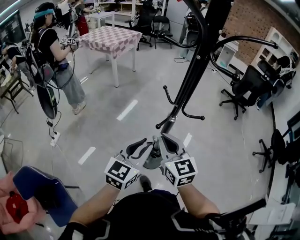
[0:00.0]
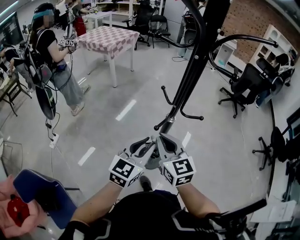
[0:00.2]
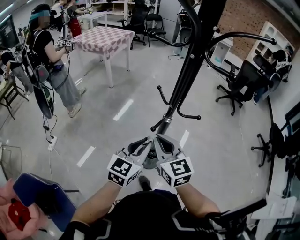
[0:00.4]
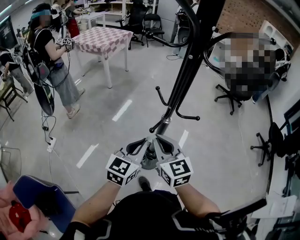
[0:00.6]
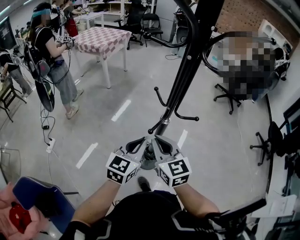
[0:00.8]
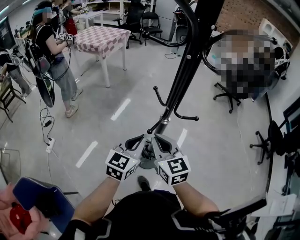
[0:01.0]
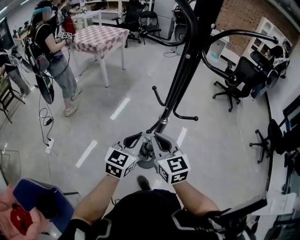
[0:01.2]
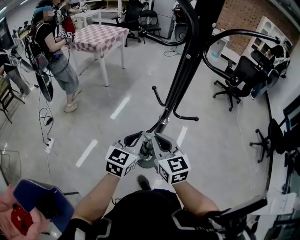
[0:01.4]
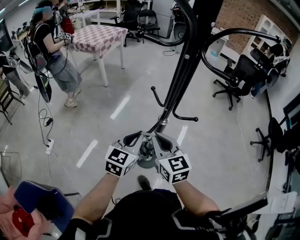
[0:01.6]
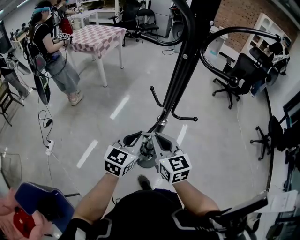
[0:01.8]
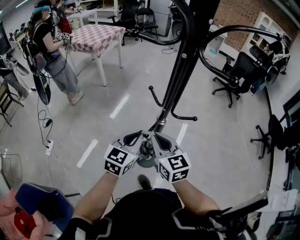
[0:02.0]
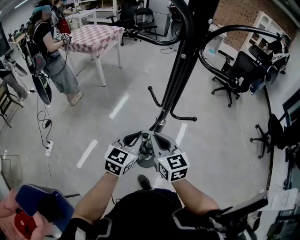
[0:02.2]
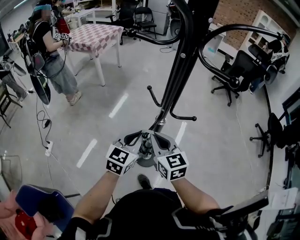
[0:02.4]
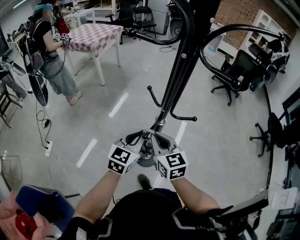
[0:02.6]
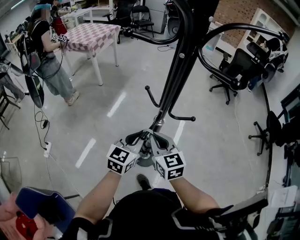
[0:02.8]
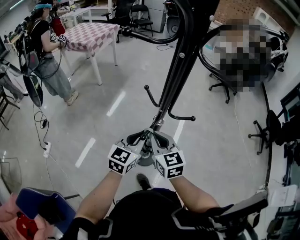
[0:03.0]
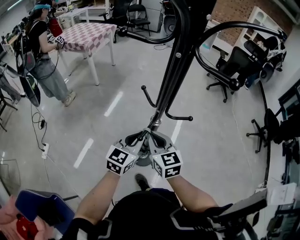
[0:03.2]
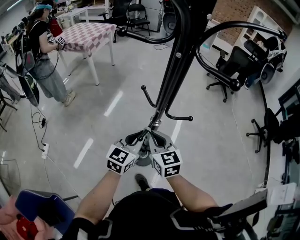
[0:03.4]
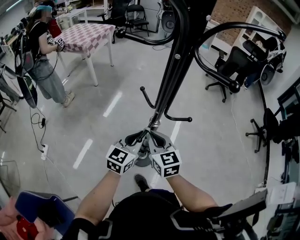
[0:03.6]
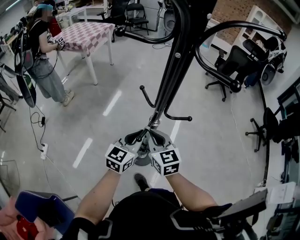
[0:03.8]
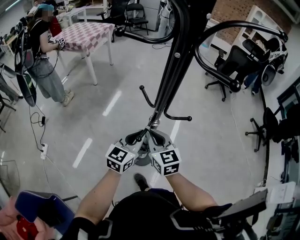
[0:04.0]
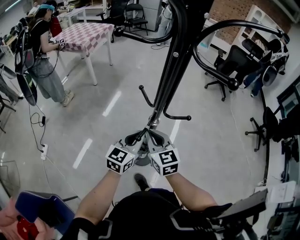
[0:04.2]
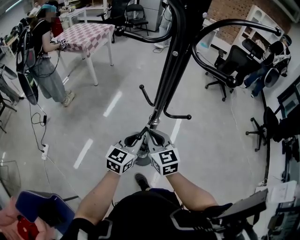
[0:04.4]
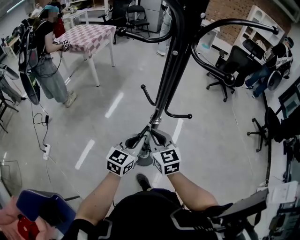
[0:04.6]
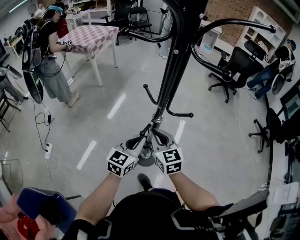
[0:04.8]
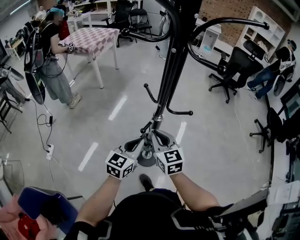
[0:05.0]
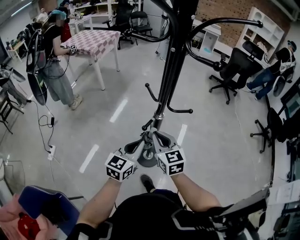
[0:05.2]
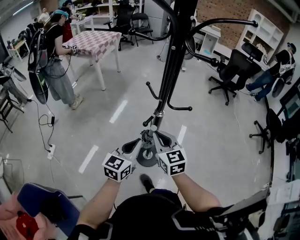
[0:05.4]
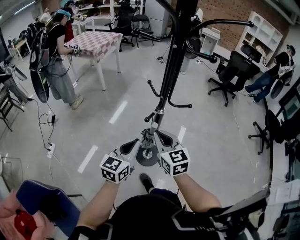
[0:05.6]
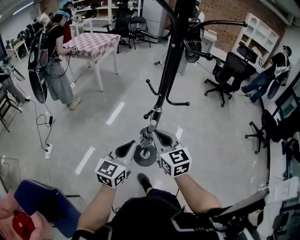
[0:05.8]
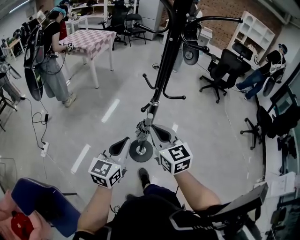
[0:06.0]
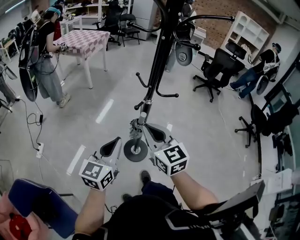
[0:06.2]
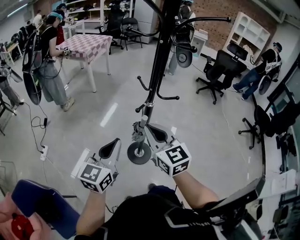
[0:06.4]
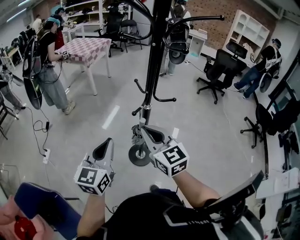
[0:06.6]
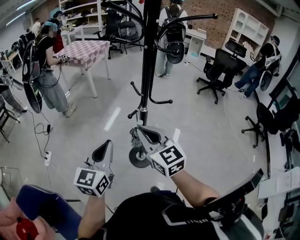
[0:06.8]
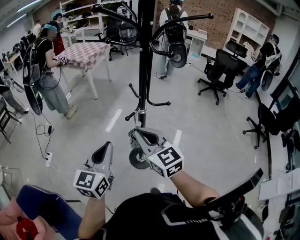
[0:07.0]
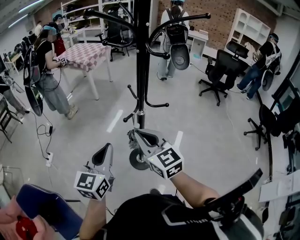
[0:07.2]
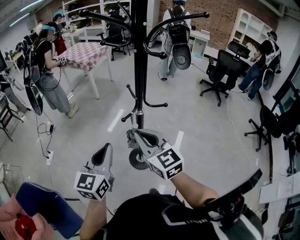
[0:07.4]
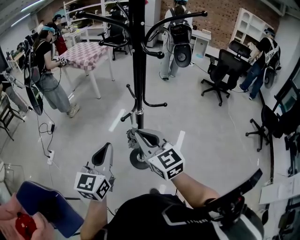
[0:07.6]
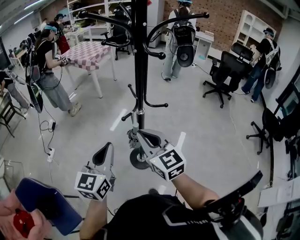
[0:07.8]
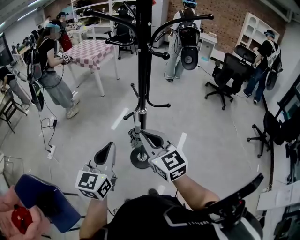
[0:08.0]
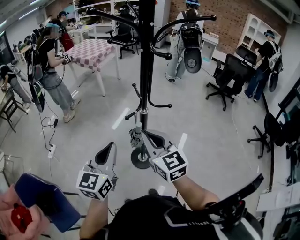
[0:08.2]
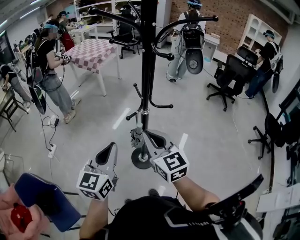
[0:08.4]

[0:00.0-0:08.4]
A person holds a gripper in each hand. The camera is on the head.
0:00.0 to 0:01.4: The left gripper shifts about 10 cm forward; the right gripper moves approximately 5 cm.
0:01.4 to 0:02.8: The left gripper moves about 5 cm. Meanwhile the right gripper ends up about 5 cm from where it was.
0:02.8 to 0:04.2: There are only small adjustments of the grippers.
0:04.2 to 0:05.6: The two grippers go about 10 cm backward.
0:05.6 to 0:07.0: The grippers both shift upward and backward by about 10 cm.
0:07.0 to 0:08.4: The grippers stay close to where they were, moving slightly.

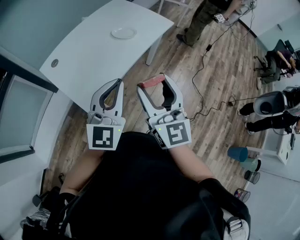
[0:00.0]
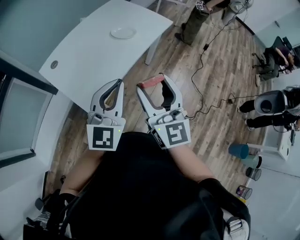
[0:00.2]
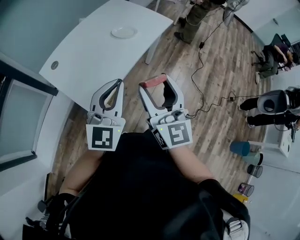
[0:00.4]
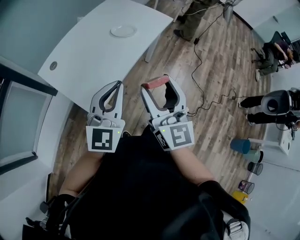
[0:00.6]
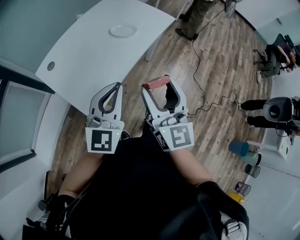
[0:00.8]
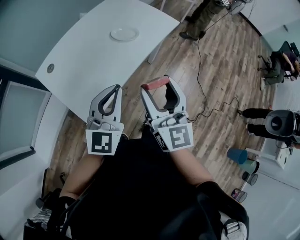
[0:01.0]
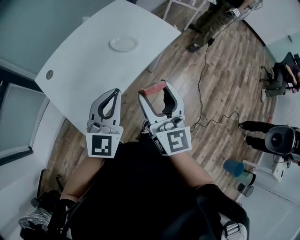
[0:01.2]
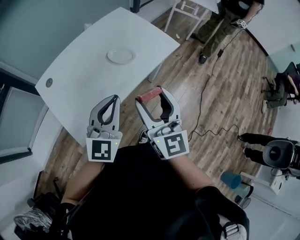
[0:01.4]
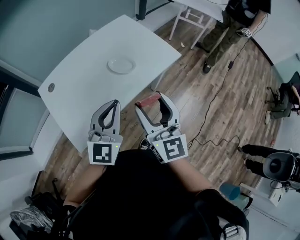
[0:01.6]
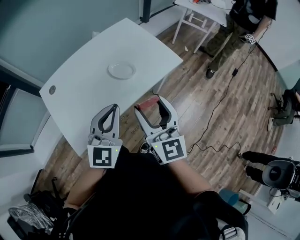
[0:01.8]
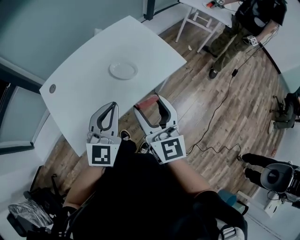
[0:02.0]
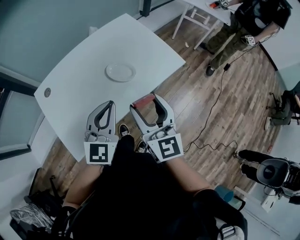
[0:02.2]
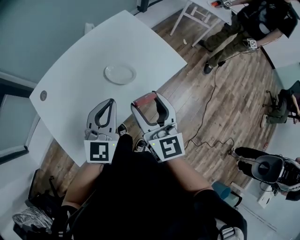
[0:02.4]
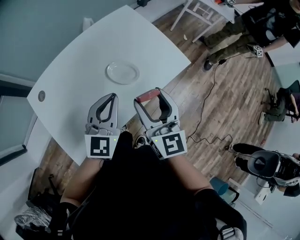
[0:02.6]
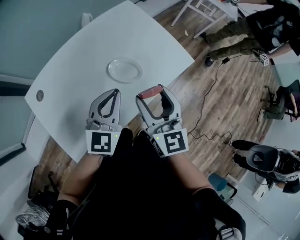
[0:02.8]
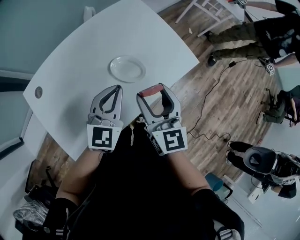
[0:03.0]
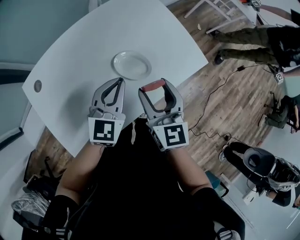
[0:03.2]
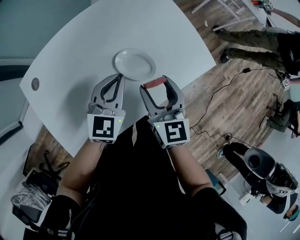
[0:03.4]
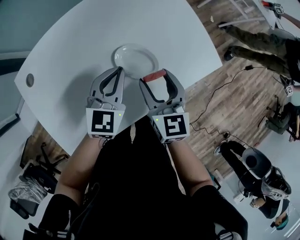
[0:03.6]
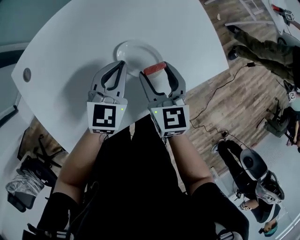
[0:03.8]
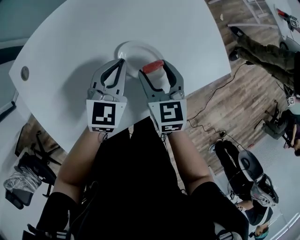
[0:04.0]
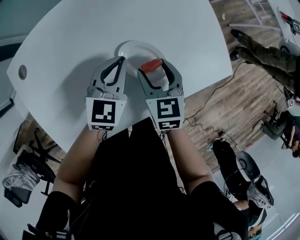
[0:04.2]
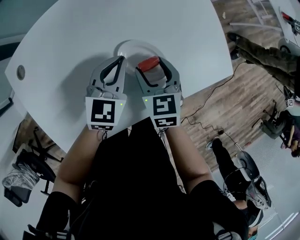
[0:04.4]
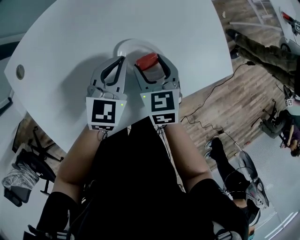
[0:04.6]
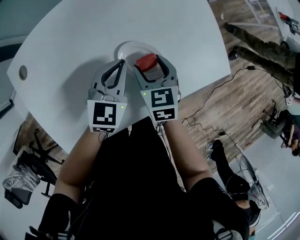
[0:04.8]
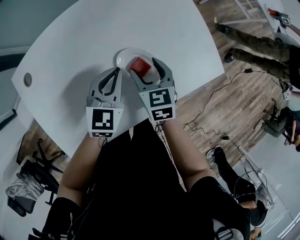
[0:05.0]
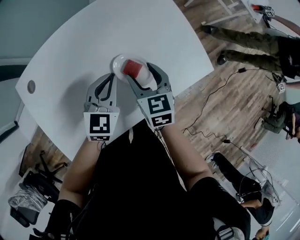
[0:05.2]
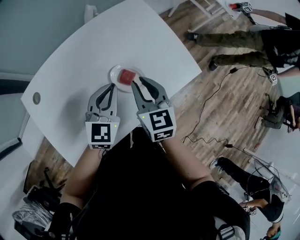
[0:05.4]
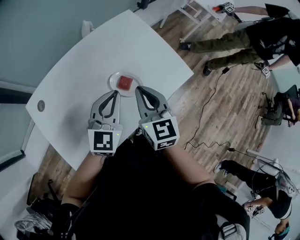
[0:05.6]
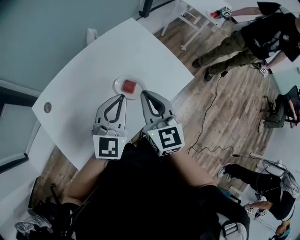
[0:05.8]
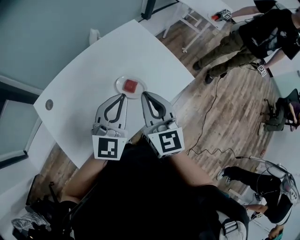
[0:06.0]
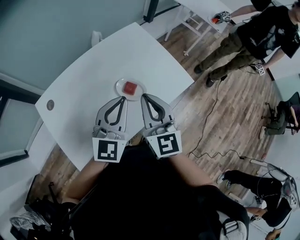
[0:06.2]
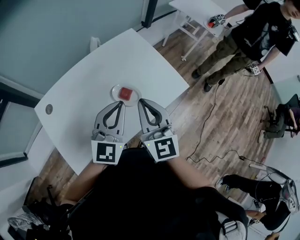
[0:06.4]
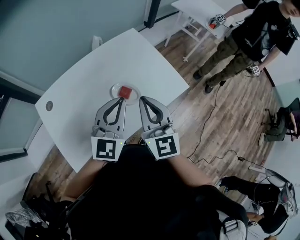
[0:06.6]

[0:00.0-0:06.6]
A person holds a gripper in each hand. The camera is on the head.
0:00.0 to 0:01.6: Both grippers move forward, some 20 cm.
0:01.6 to 0:03.2: Both grippers travel together forward and downward, some 25 cm.
0:03.2 to 0:05.0: The left gripper is displaced downward and forward by about 10 cm. The right gripper shifts approximately 20 cm downward and forward, and rotates some 30 degrees.
0:05.0 to 0:06.6: The grippers both shift upward and backward by approximately 25 cm. The right gripper tilts its fingers roughly 40 degrees upward, and closes its fingers. Meanwhile the left gripper rotates some 30 degrees.

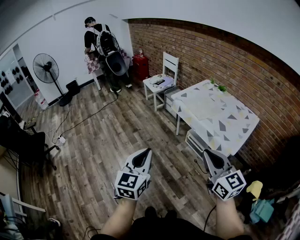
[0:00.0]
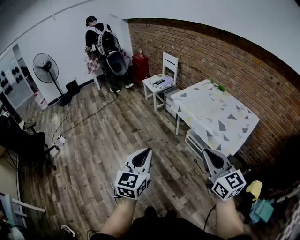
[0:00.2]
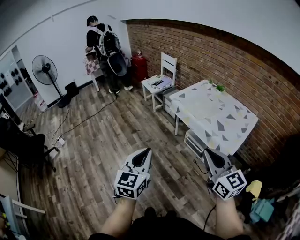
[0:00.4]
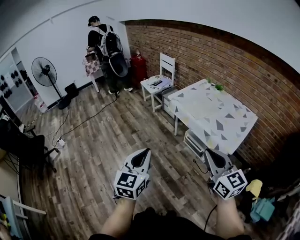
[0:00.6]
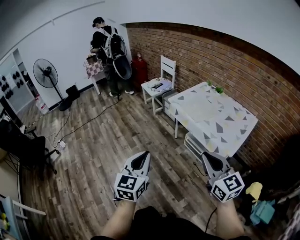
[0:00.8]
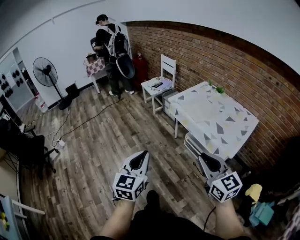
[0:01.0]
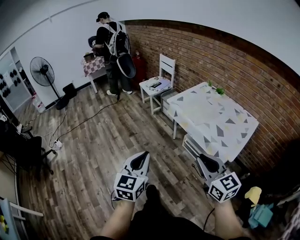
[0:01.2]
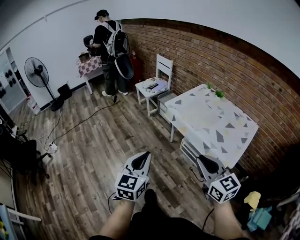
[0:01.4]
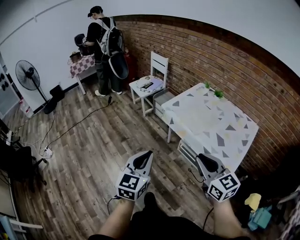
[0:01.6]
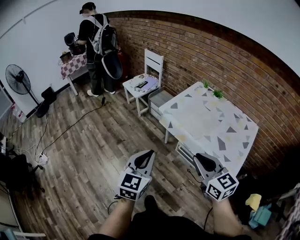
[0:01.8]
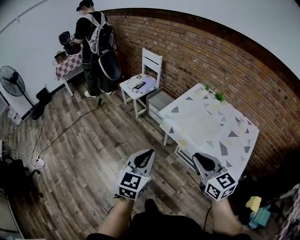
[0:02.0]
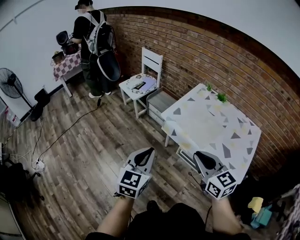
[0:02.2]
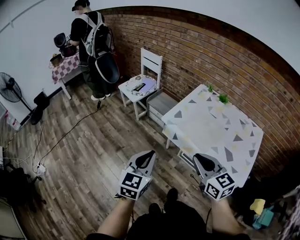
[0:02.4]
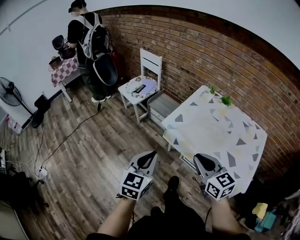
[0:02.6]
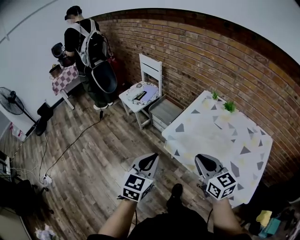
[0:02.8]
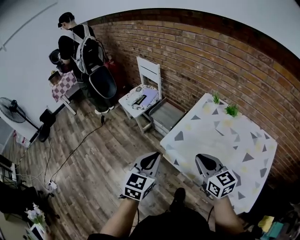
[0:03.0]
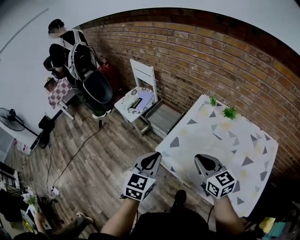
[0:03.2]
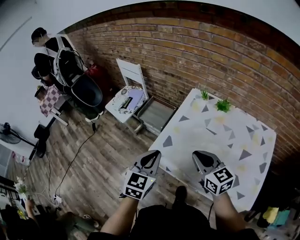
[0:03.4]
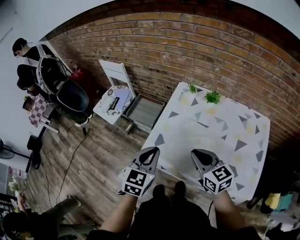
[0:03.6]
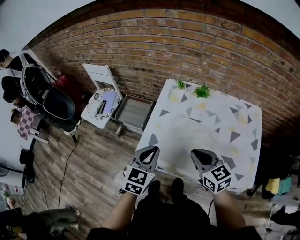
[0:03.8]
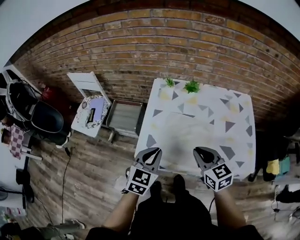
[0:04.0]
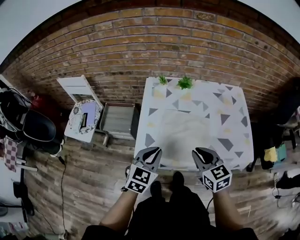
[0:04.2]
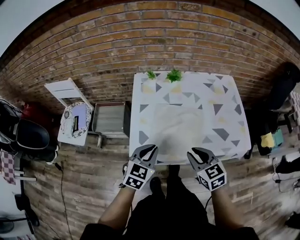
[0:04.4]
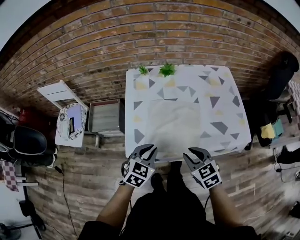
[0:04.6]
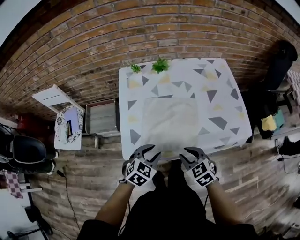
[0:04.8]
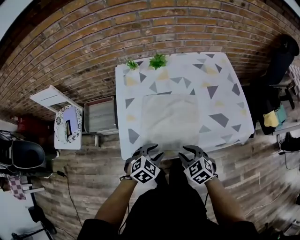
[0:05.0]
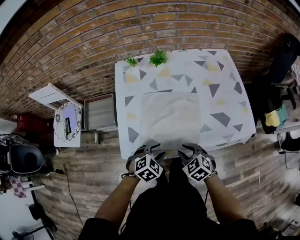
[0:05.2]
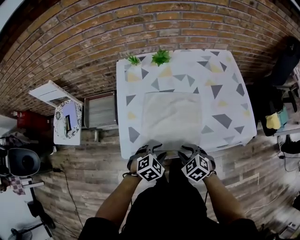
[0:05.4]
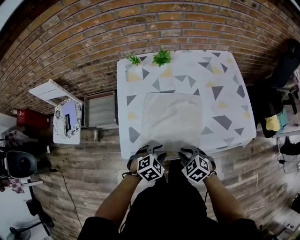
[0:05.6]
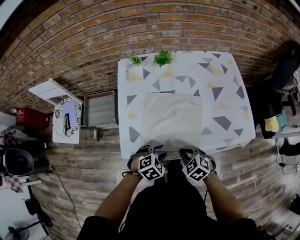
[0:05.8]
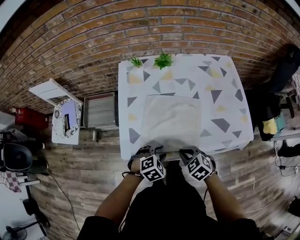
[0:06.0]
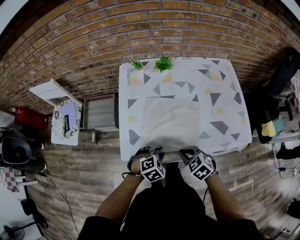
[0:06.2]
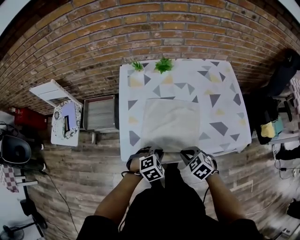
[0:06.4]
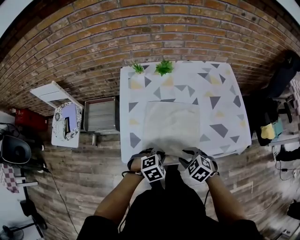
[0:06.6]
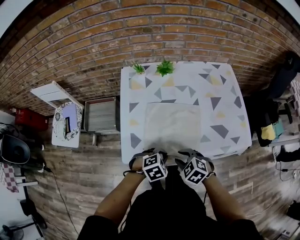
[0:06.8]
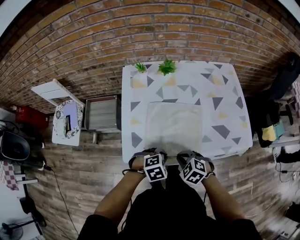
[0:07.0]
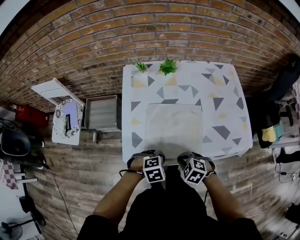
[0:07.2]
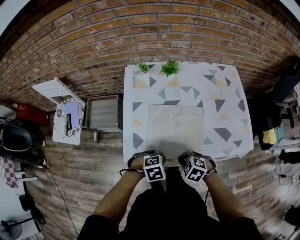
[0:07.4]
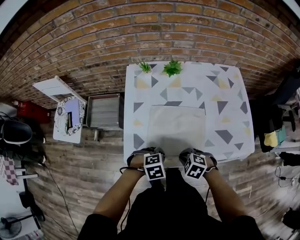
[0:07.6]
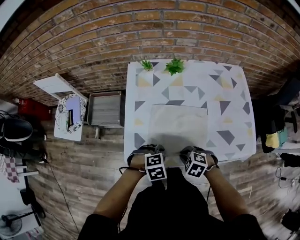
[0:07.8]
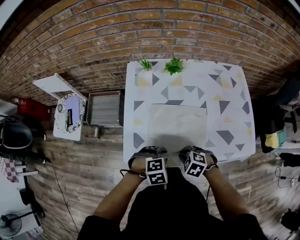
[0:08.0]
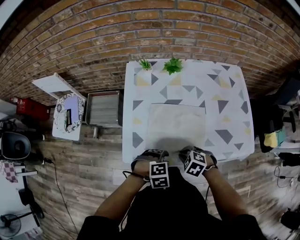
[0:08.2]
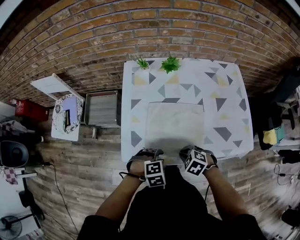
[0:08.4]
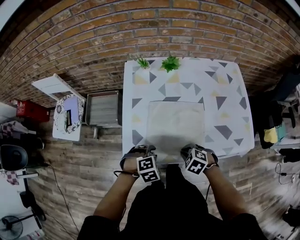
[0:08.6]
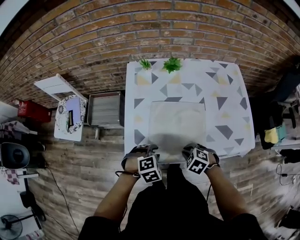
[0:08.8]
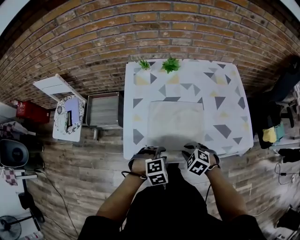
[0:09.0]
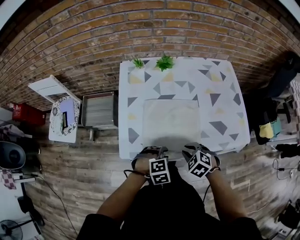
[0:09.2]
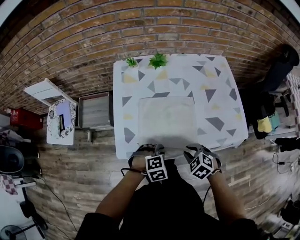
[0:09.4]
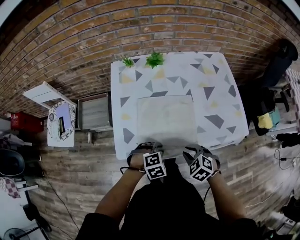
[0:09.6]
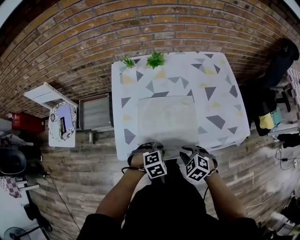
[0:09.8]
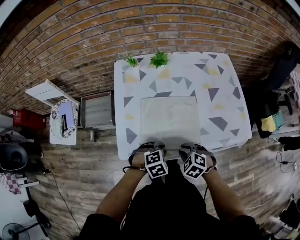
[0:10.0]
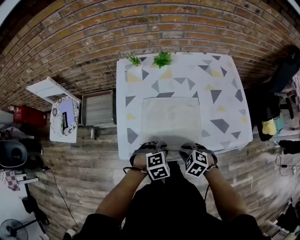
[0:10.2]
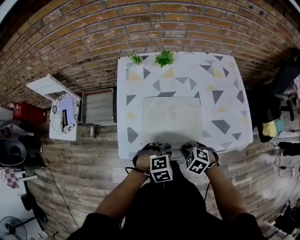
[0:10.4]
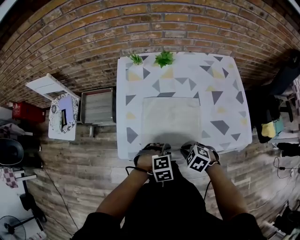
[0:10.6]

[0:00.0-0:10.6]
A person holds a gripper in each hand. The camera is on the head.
0:00.0 to 0:01.6: The two grippers go approximately 15 cm forward.
0:01.6 to 0:03.0: The two grippers go about 40 cm forward.
0:03.0 to 0:04.6: Both grippers move downward, some 15 cm. The right gripper turns by some 50 degrees, and opens up, while the left gripper rotates some 60 degrees.
0:04.6 to 0:06.0: The right gripper travels downward by roughly 10 cm, changes its angle by roughly 20 degrees, and closes up, while the left gripper is displaced downward and to the right by approximately 15 cm, changes its angle by approximately 30 degrees, and opens up.
0:06.0 to 0:07.6: The right gripper changes its angle by about 20 degrees, and opens and closes again. Meanwhile the left gripper closes up.
0:07.6 to 0:09.0: The left gripper opens its fingers.
0:09.0 to 0:10.6: The left gripper moves approximately 5 cm.
